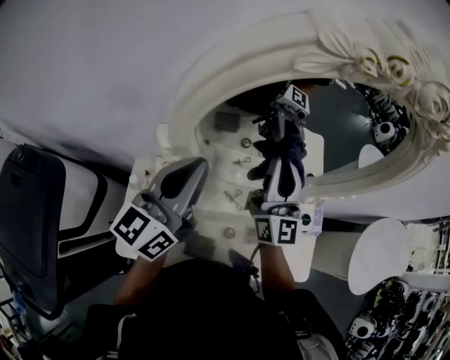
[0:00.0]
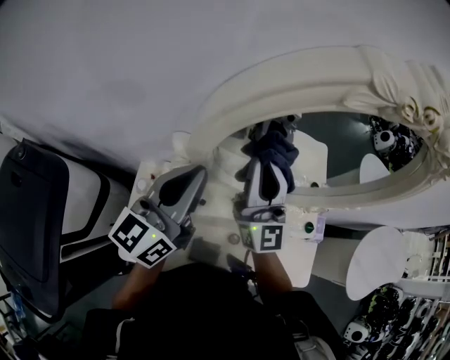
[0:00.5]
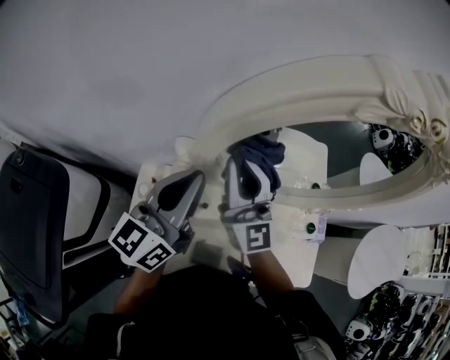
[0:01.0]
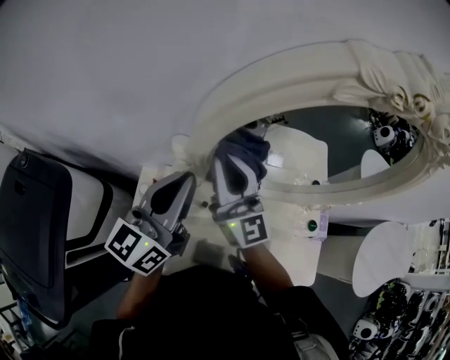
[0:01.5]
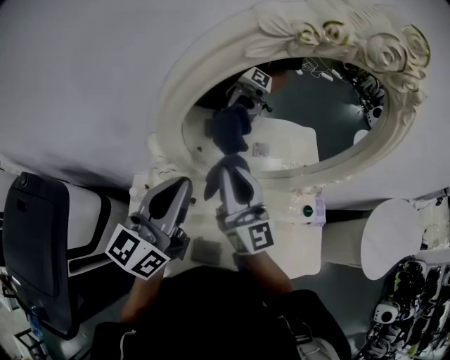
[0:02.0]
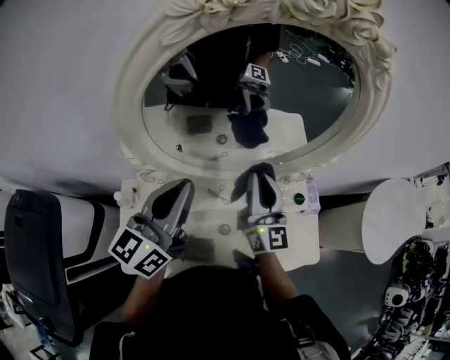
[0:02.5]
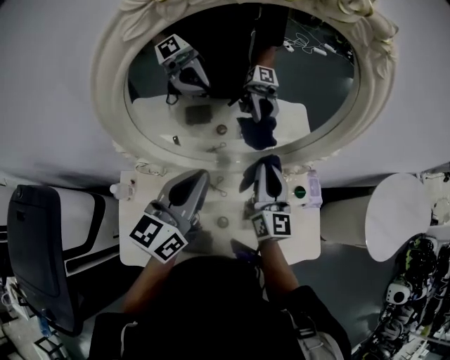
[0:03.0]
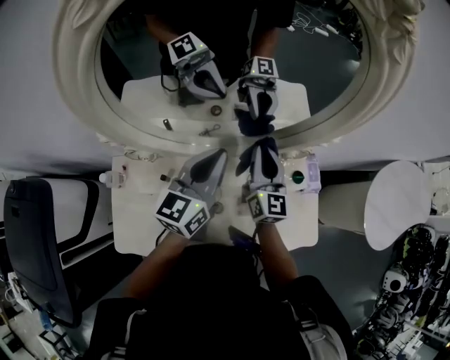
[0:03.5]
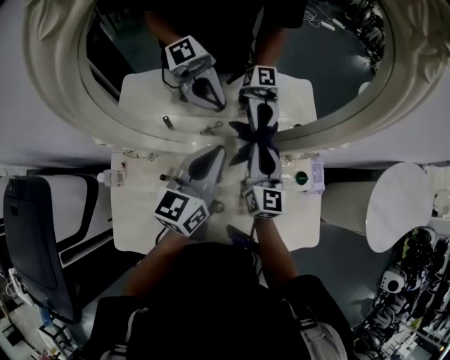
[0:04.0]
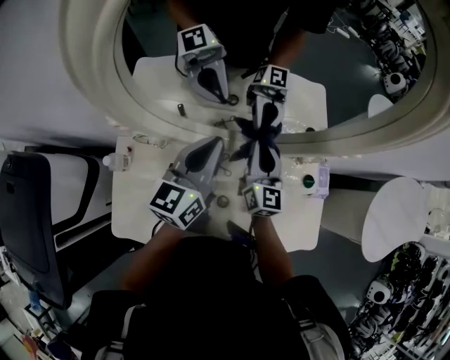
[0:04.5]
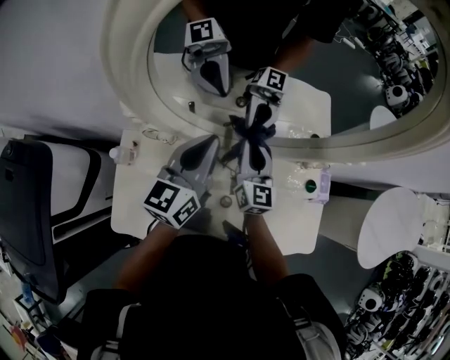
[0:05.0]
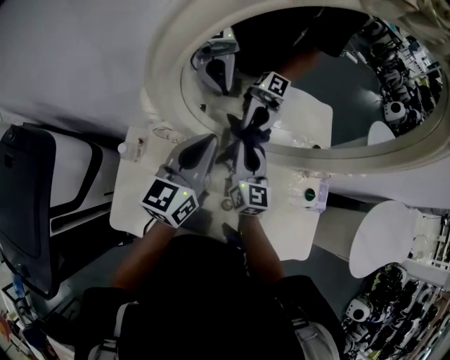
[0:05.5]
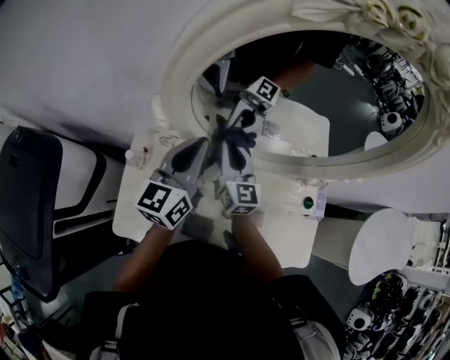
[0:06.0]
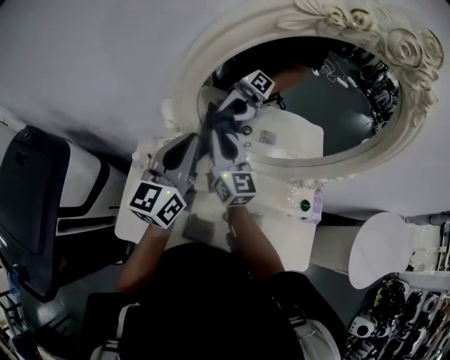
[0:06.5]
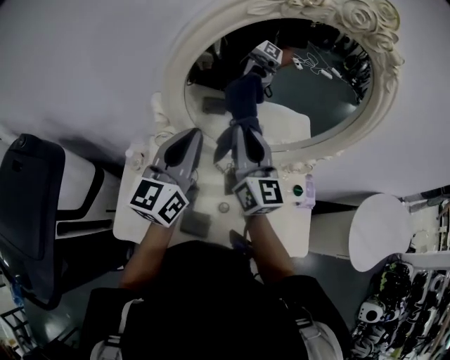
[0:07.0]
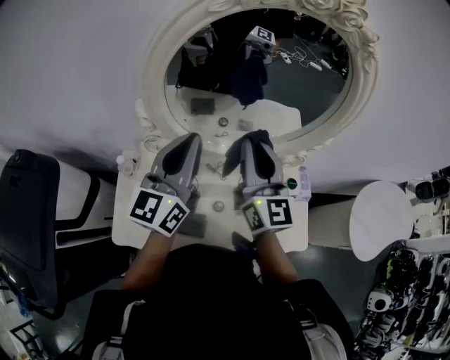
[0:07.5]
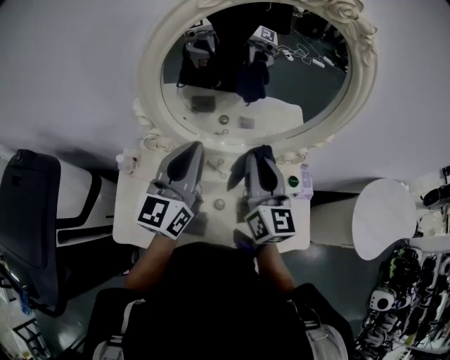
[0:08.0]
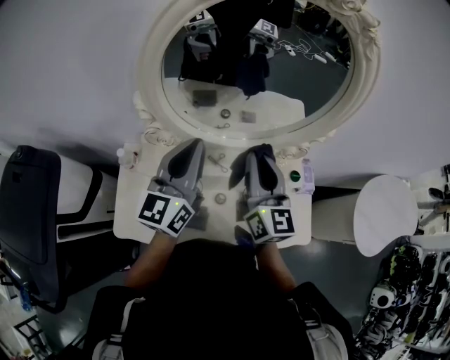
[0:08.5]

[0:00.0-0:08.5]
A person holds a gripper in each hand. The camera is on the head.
0:00.0 to 0:02.0: The right gripper moves to the left and backward, roughly 10 cm.
0:02.0 to 0:04.0: Both grippers move to the right, downward and forward, roughly 25 cm. The right gripper rotates about 30 degrees.
0:04.0 to 0:06.5: The right gripper heads to the left, covering approximately 25 cm, and turns by some 30 degrees, while the left gripper heads to the left and upward, covering some 20 cm, and turns by about 20 degrees.
0:06.5 to 0:08.5: The right gripper heads to the right, backward and upward, covering about 25 cm. The left gripper heads to the right and backward, covering about 10 cm.

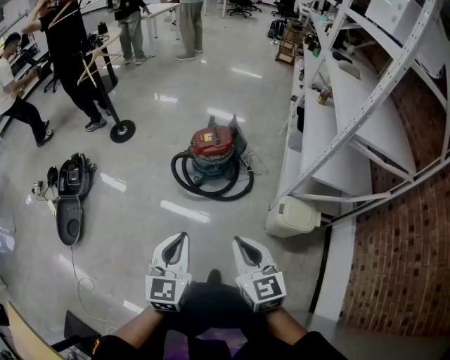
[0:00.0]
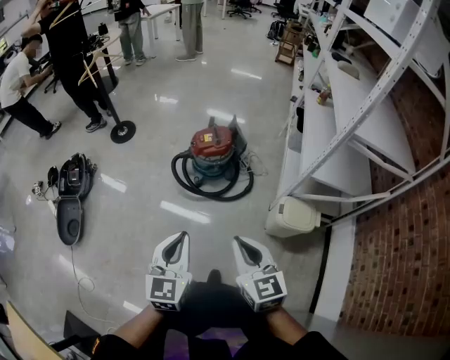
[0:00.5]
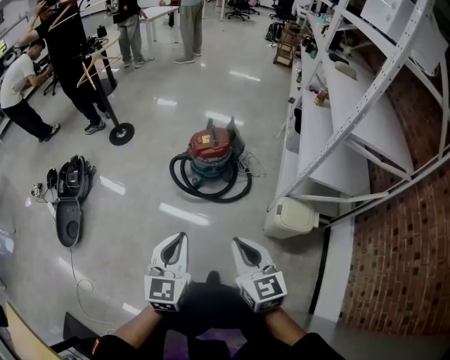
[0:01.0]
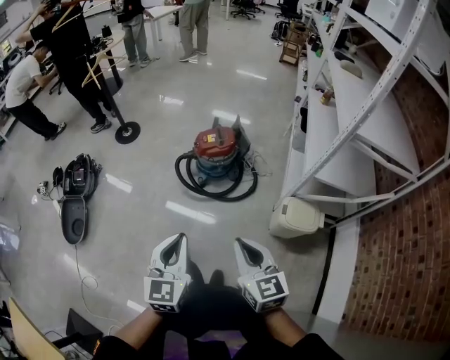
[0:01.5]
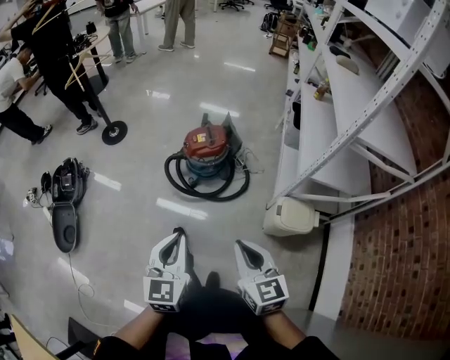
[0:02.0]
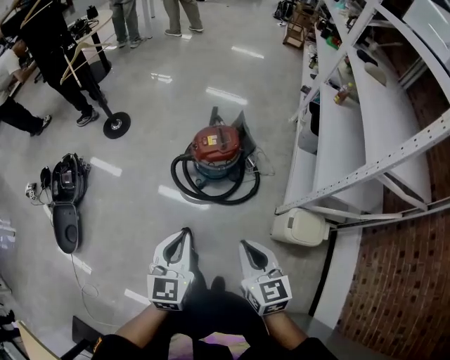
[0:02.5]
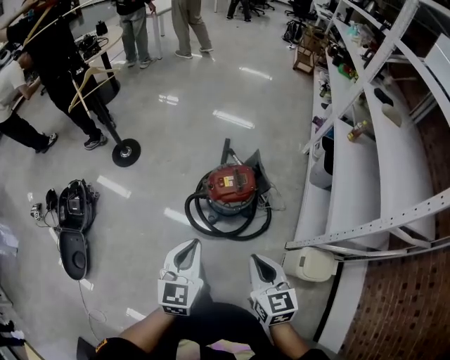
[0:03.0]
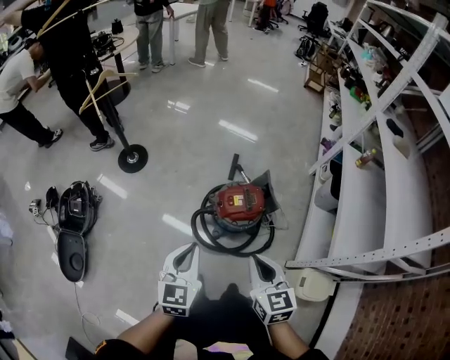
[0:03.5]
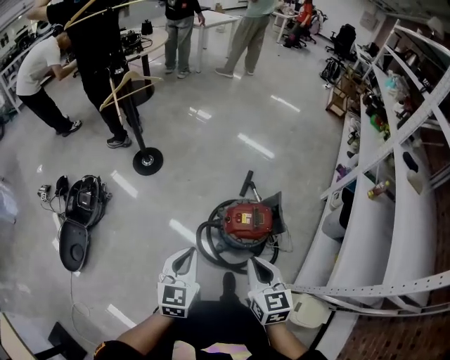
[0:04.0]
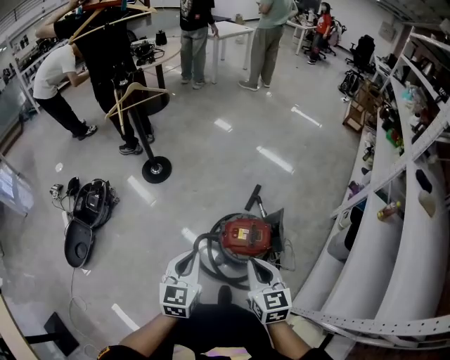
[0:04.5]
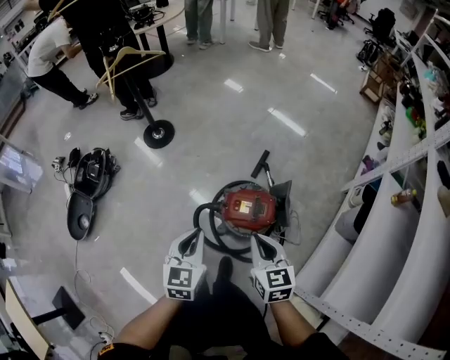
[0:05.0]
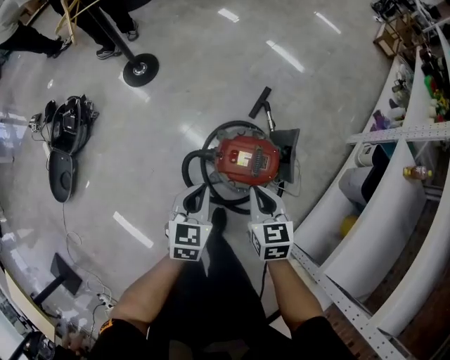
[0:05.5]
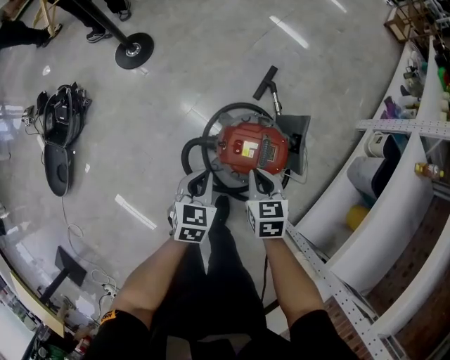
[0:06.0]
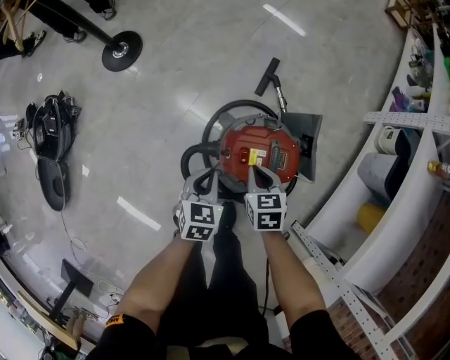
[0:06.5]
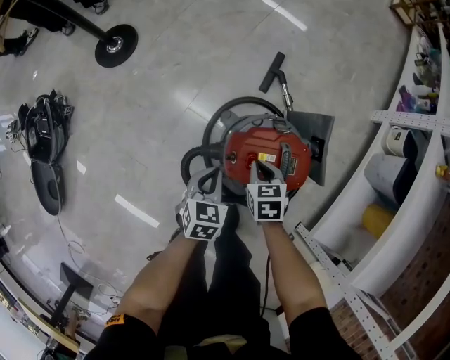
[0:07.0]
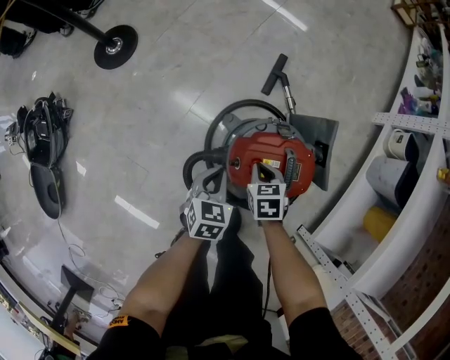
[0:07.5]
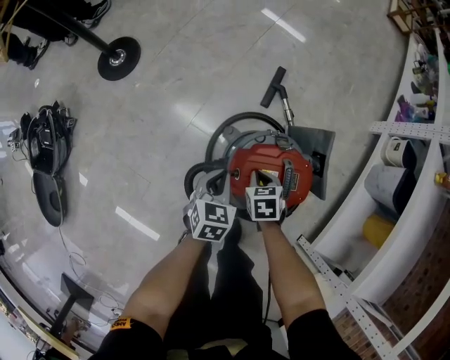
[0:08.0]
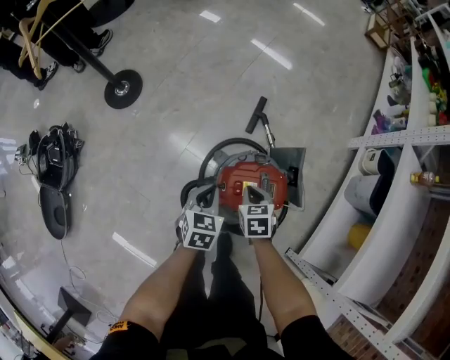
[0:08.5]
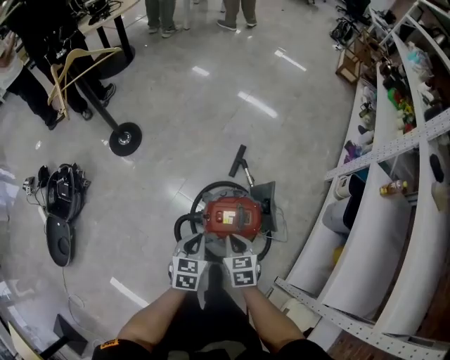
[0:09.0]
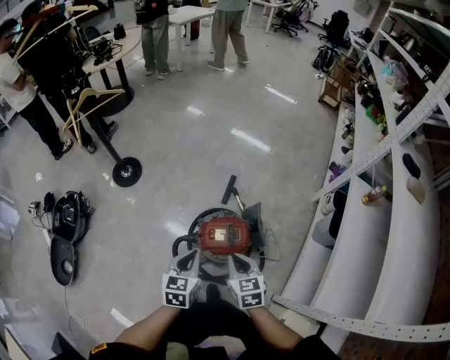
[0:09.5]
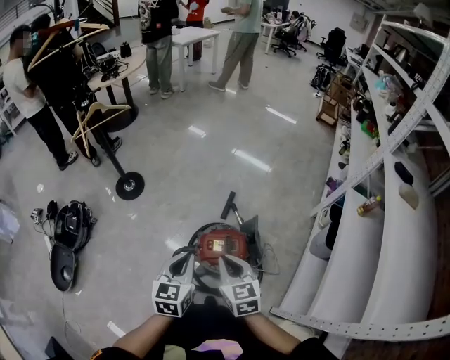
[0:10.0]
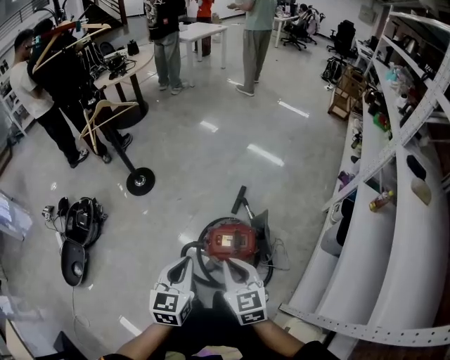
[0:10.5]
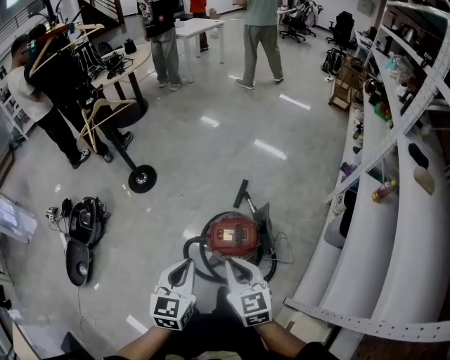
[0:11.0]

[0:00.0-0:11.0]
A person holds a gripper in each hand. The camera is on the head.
0:00.0 to 0:02.0: There are only small adjustments of the grippers.
0:02.0 to 0:03.5: The left gripper travels forward and to the left by approximately 35 cm, while the right gripper is displaced forward by roughly 35 cm.
0:03.5 to 0:05.5: The right gripper heads forward, downward and to the right, covering some 30 cm, and rotates roughly 20 degrees. The left gripper travels downward, forward and to the right by some 30 cm, and rotates roughly 20 degrees.
0:05.5 to 0:07.5: The two grippers go approximately 30 cm downward. The right gripper swivels approximately 30 degrees.
0:07.5 to 0:09.0: Both grippers move upward, some 25 cm.
0:09.0 to 0:11.0: The two grippers go approximately 25 cm upward and backward. The left gripper swivels roughly 20 degrees; the right gripper turns by roughly 30 degrees.

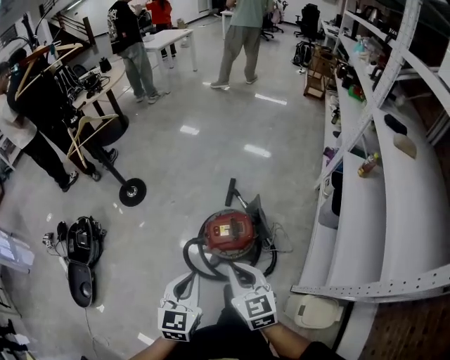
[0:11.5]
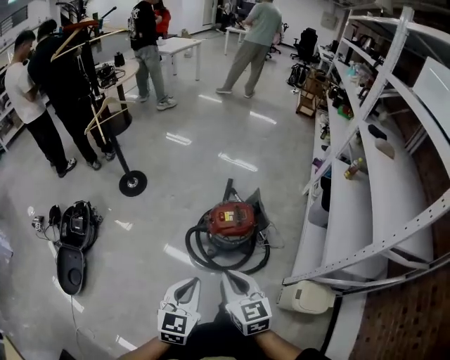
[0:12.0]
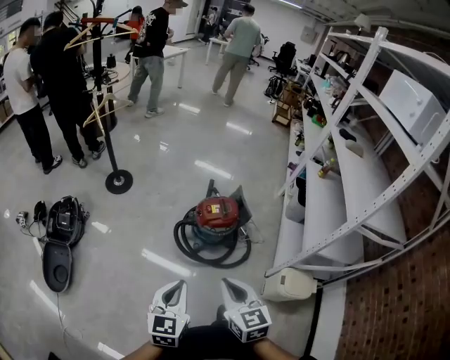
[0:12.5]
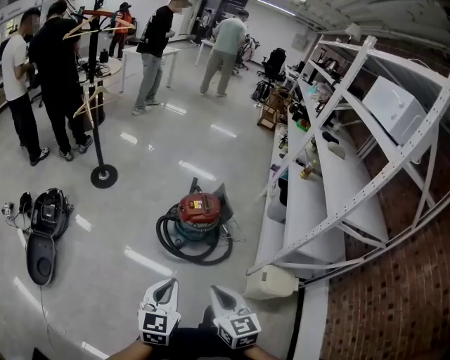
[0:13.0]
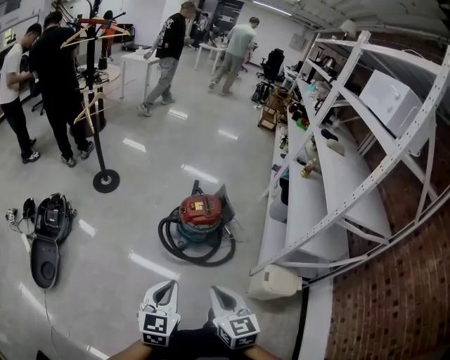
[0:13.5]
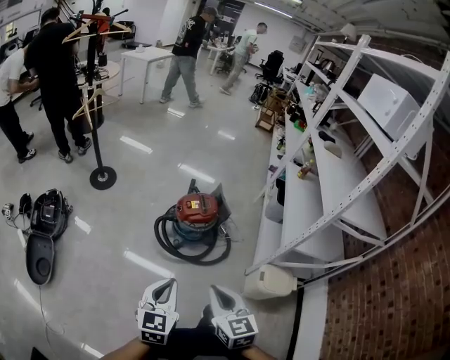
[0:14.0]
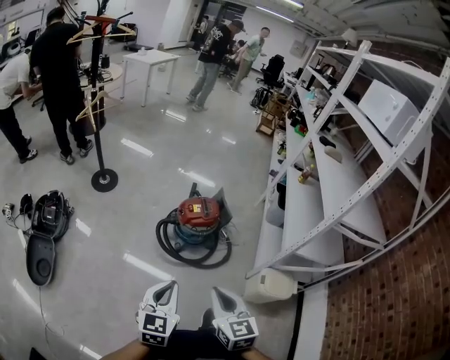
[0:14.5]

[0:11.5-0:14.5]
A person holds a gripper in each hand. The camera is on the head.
0:11.5 to 0:13.0: The two grippers go about 35 cm backward.
0:13.0 to 0:14.5: The grippers stay close to where they were, moving slightly.

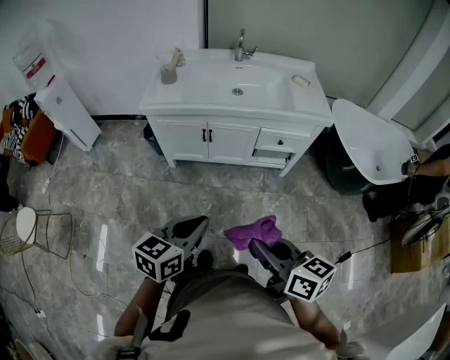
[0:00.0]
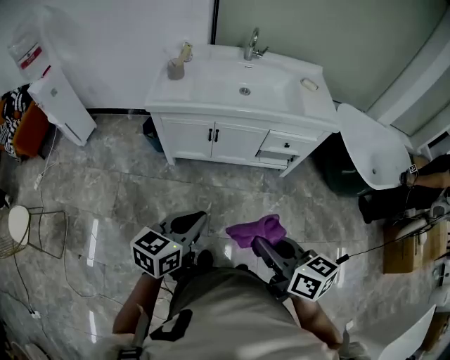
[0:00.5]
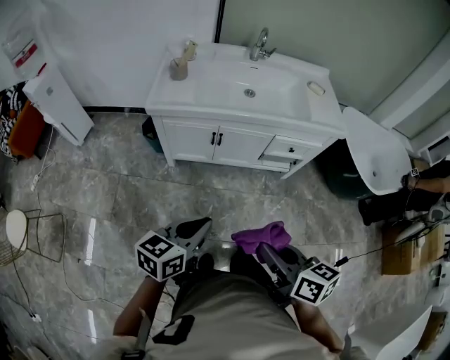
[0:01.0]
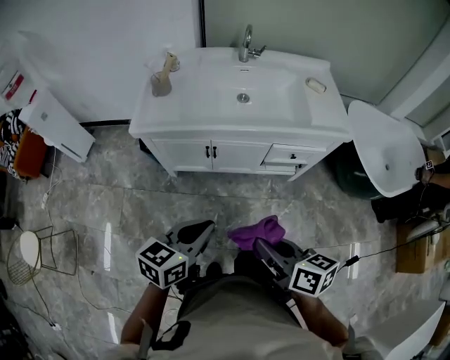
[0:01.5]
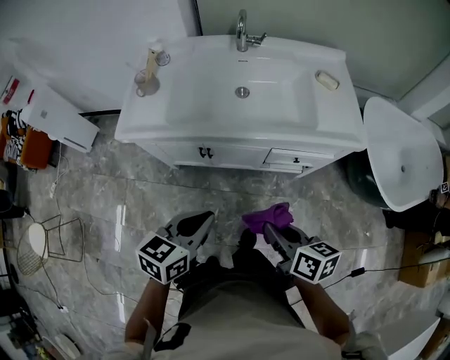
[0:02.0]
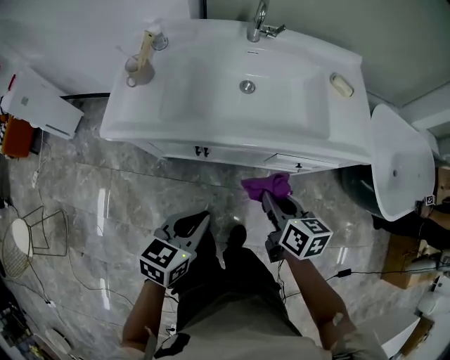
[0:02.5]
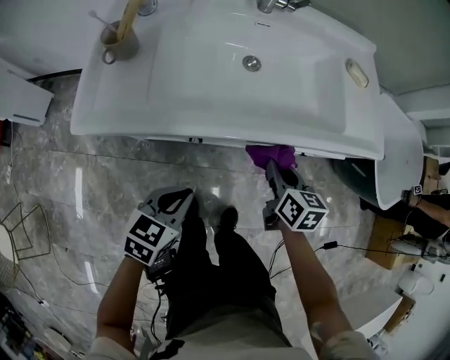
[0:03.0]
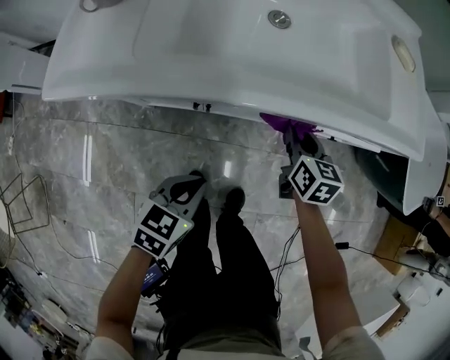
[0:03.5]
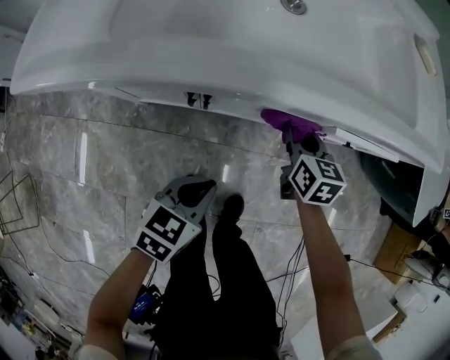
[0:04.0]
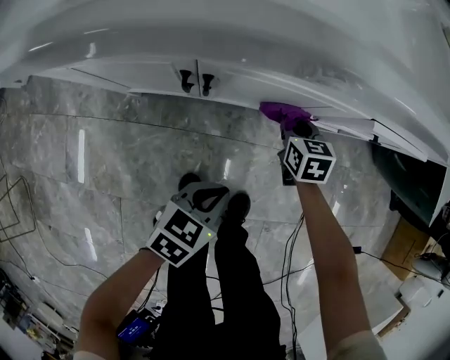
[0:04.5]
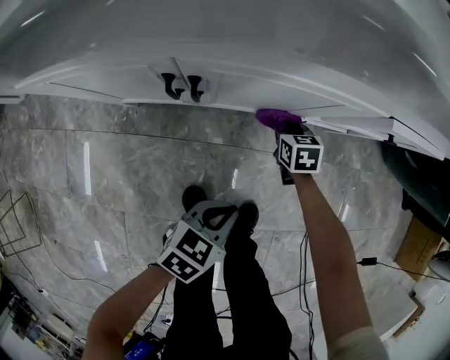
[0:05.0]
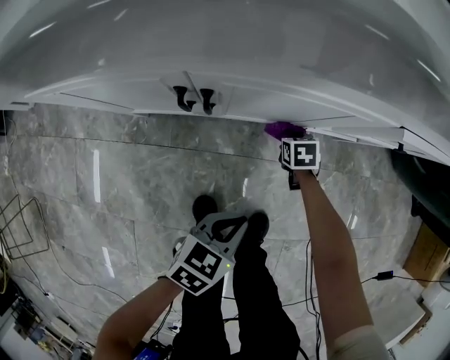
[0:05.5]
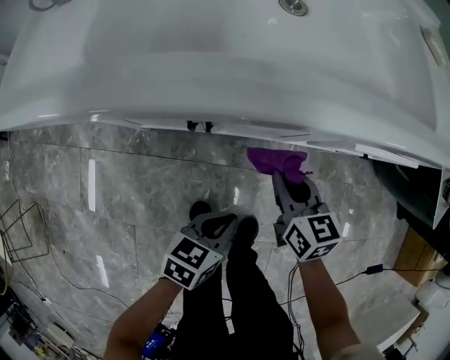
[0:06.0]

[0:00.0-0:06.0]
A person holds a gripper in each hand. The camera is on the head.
0:00.0 to 0:02.0: The two grippers go some 30 cm forward.
0:02.0 to 0:04.0: The left gripper heads downward, covering approximately 35 cm. The right gripper travels downward and forward by about 40 cm, and turns by about 30 degrees.
0:04.0 to 0:06.0: The left gripper is displaced downward by roughly 5 cm; the right gripper moves backward, roughly 10 cm, and goes downward and returns, approximately 30 cm each way.
